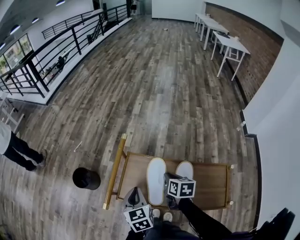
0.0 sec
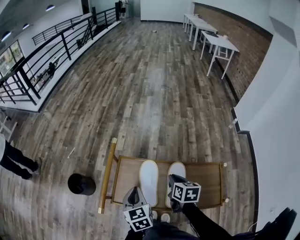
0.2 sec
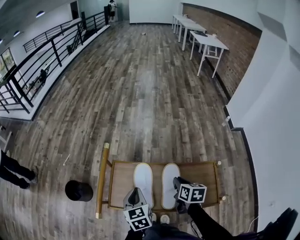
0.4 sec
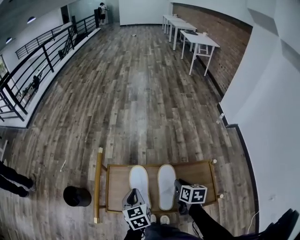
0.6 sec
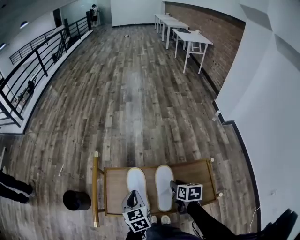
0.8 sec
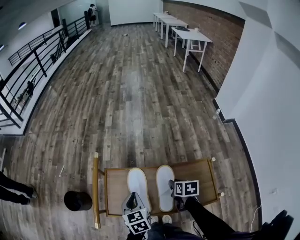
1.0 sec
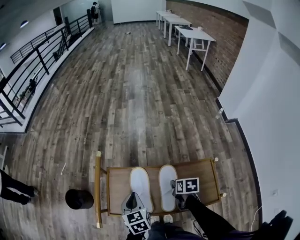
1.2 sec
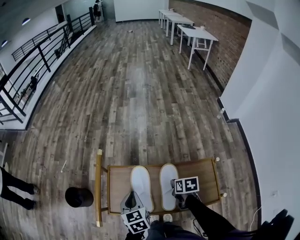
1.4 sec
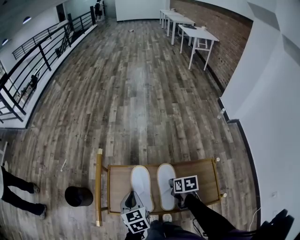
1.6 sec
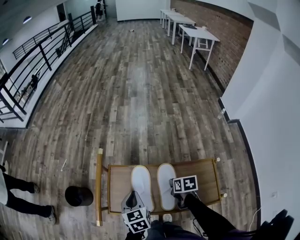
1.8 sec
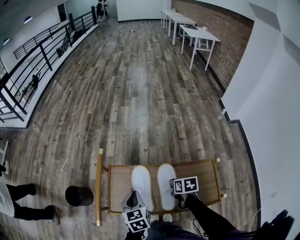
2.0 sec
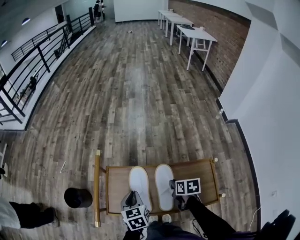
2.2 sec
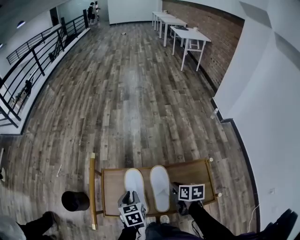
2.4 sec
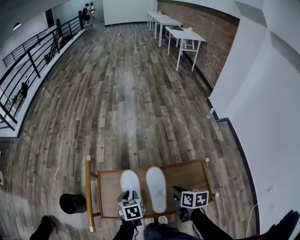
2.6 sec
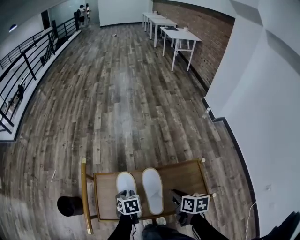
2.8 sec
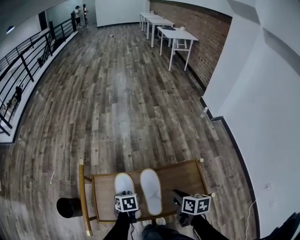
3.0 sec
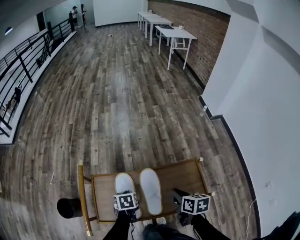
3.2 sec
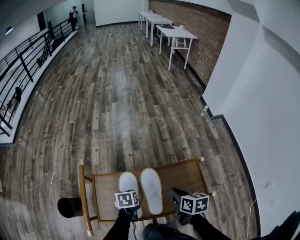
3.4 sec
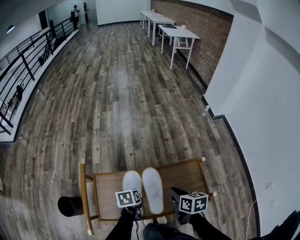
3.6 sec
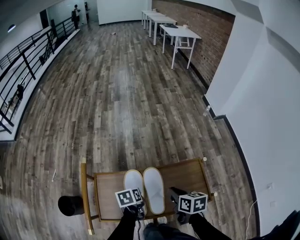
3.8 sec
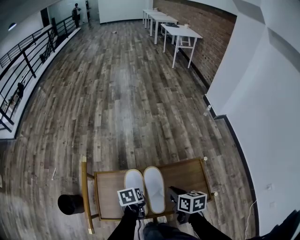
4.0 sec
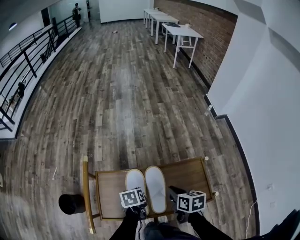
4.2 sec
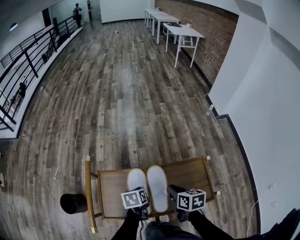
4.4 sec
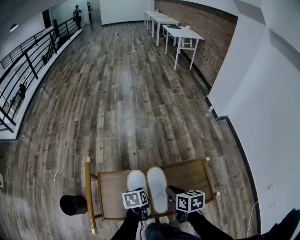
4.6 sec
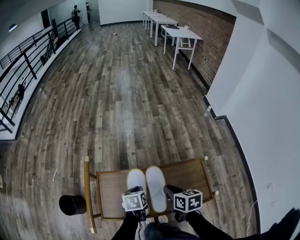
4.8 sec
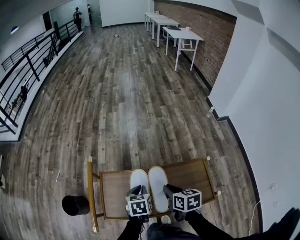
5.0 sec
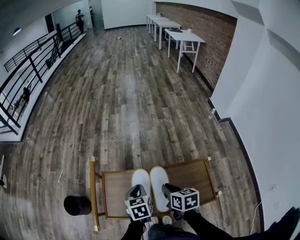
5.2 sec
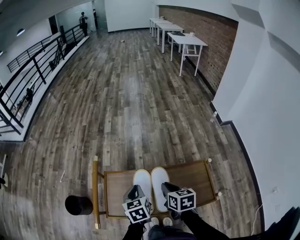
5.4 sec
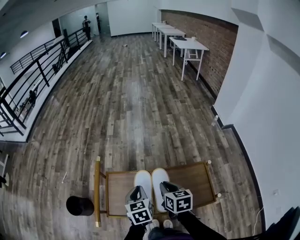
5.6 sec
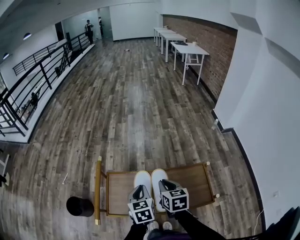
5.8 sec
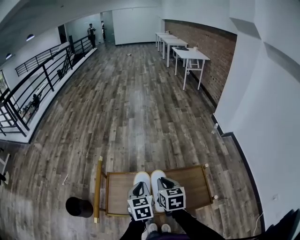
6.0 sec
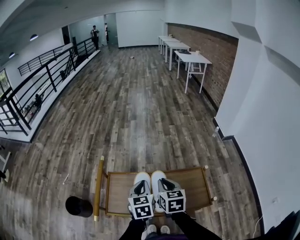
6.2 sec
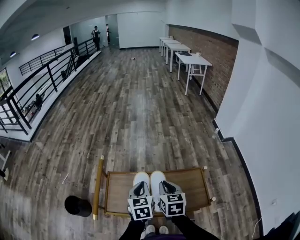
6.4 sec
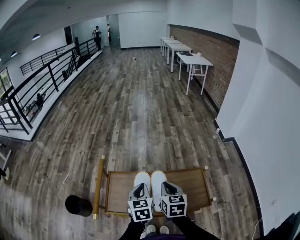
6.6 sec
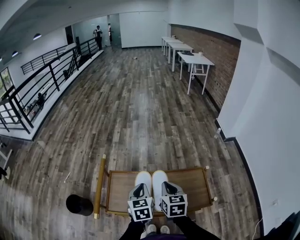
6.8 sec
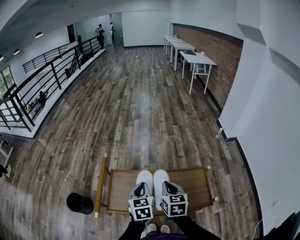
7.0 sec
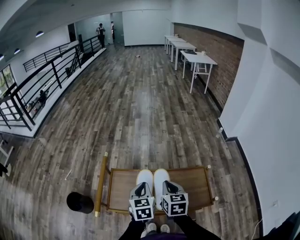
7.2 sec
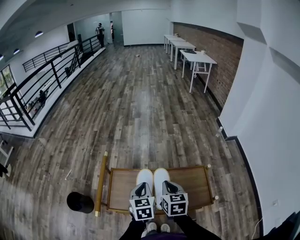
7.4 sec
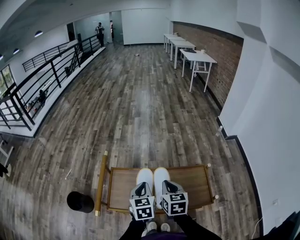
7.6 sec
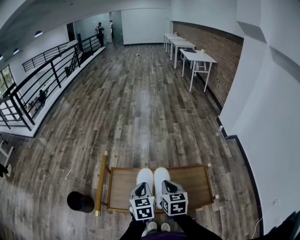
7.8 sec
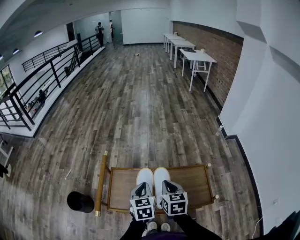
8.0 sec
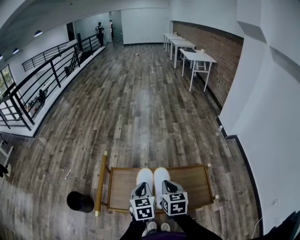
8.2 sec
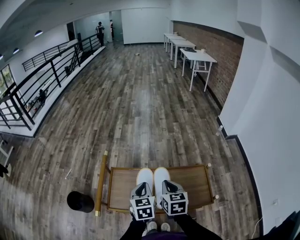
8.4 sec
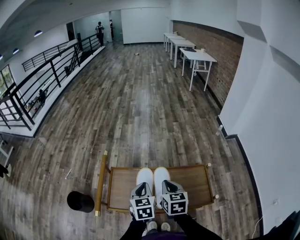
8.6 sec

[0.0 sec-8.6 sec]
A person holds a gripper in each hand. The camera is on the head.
0.0 sec to 1.4 sec: The left gripper moves to the right, some 5 cm; the right gripper travels to the right and downward by some 15 cm.
1.4 sec to 2.8 sec: The left gripper travels downward and to the right by roughly 10 cm, and changes its angle by some 30 degrees. Meanwhile the right gripper shifts approximately 10 cm upward and backward.
4.4 sec to 5.8 sec: The left gripper heads upward, covering approximately 15 cm, and turns by roughly 30 degrees. The right gripper heads upward, covering about 5 cm, and rotates some 20 degrees.
5.8 sec to 7.2 sec: The grippers make only small movements.
7.2 sec to 8.6 sec: Both grippers stay put.

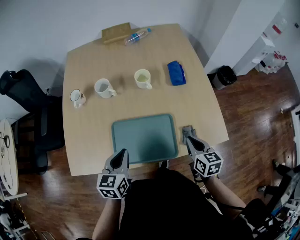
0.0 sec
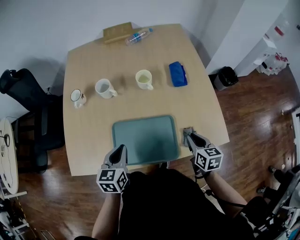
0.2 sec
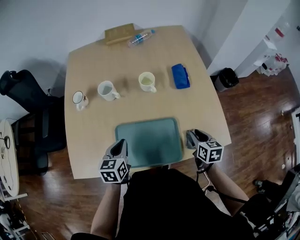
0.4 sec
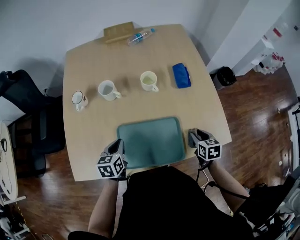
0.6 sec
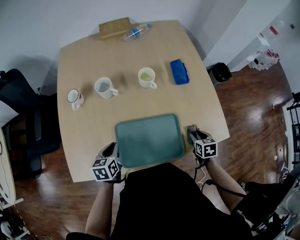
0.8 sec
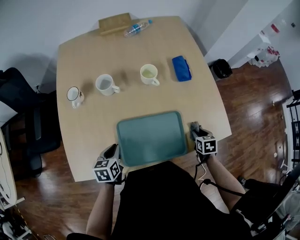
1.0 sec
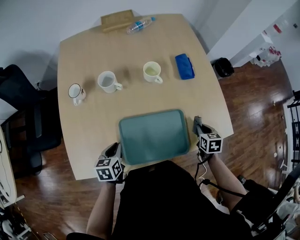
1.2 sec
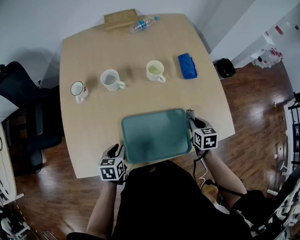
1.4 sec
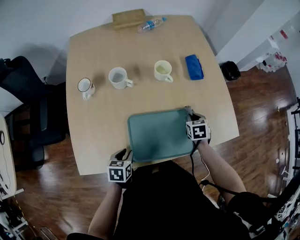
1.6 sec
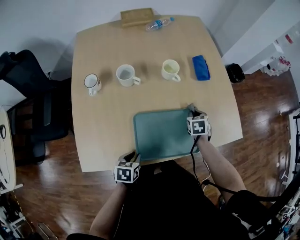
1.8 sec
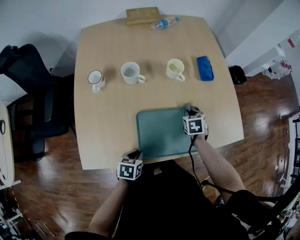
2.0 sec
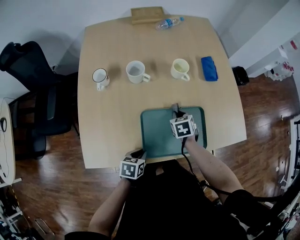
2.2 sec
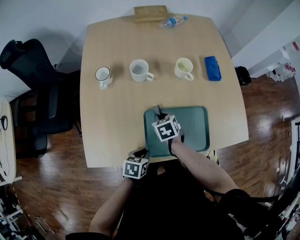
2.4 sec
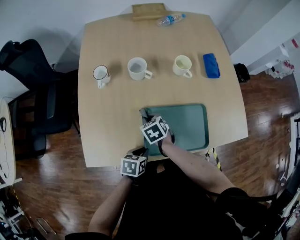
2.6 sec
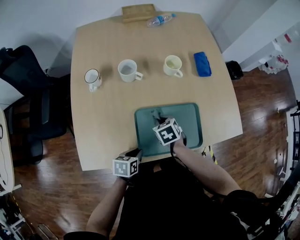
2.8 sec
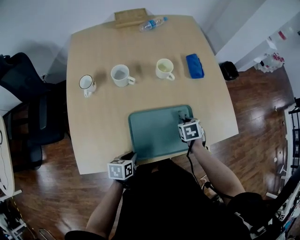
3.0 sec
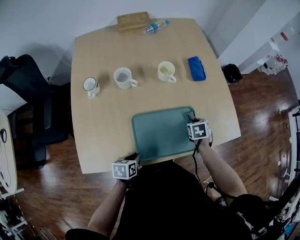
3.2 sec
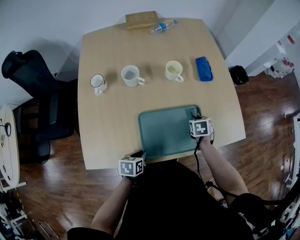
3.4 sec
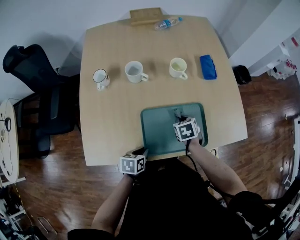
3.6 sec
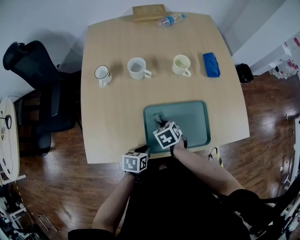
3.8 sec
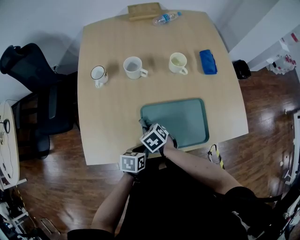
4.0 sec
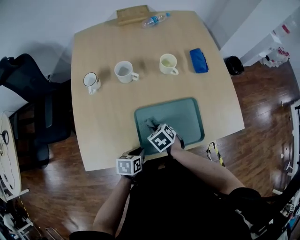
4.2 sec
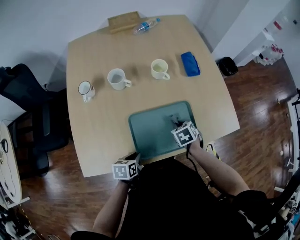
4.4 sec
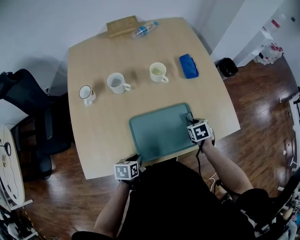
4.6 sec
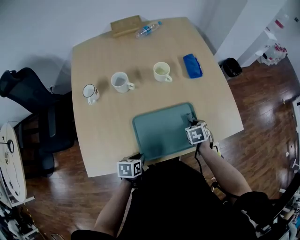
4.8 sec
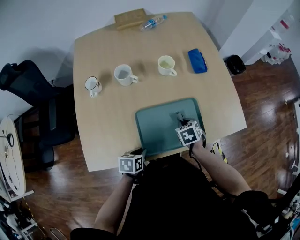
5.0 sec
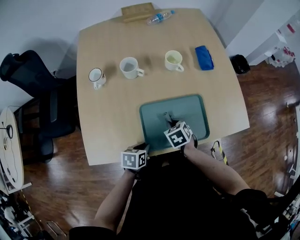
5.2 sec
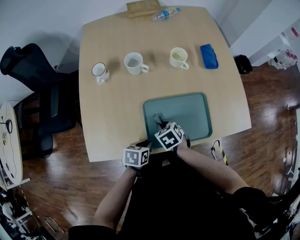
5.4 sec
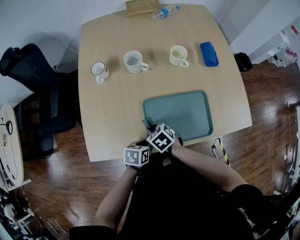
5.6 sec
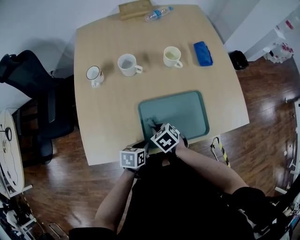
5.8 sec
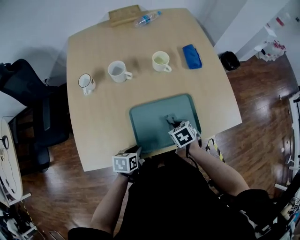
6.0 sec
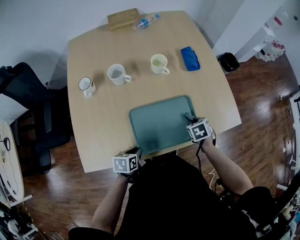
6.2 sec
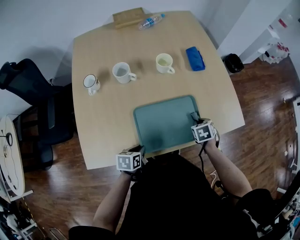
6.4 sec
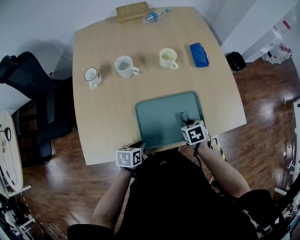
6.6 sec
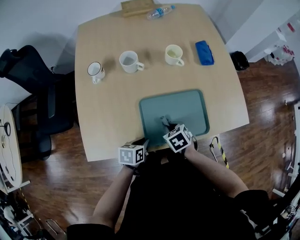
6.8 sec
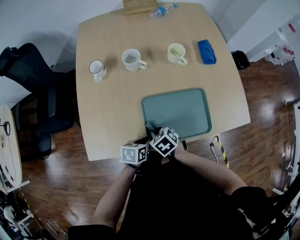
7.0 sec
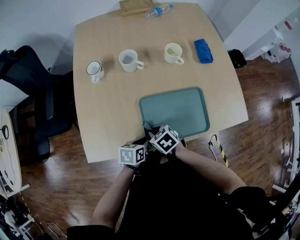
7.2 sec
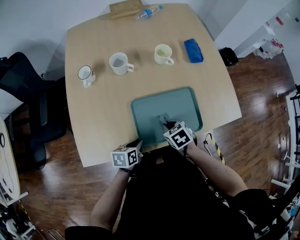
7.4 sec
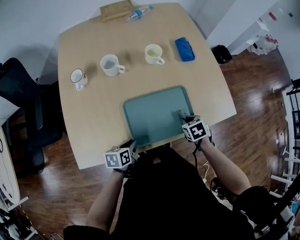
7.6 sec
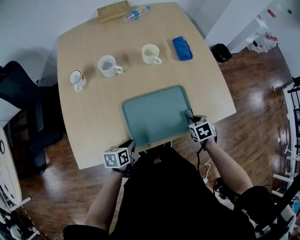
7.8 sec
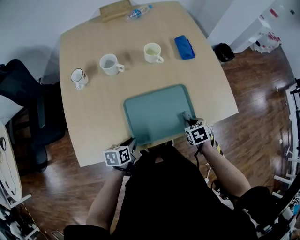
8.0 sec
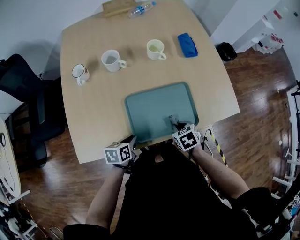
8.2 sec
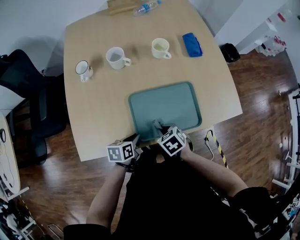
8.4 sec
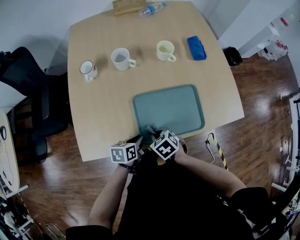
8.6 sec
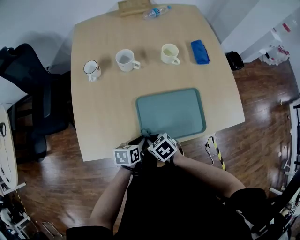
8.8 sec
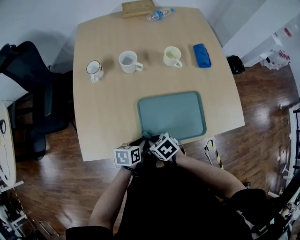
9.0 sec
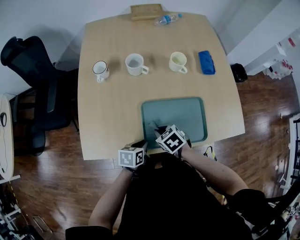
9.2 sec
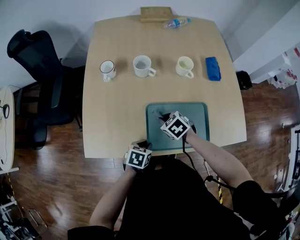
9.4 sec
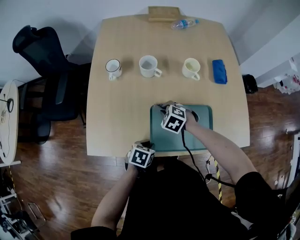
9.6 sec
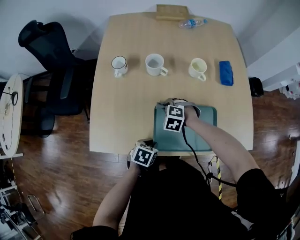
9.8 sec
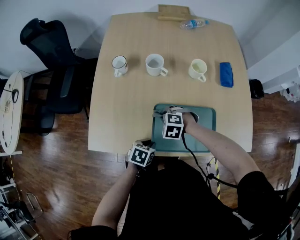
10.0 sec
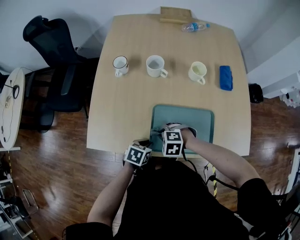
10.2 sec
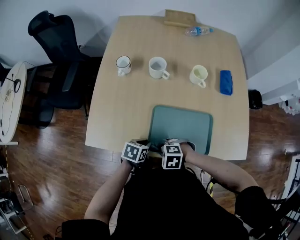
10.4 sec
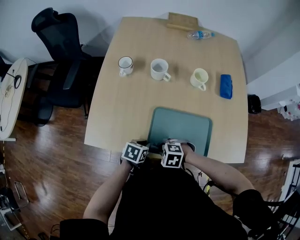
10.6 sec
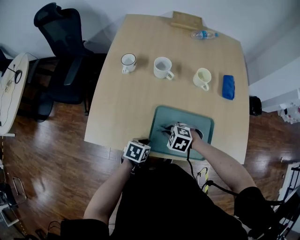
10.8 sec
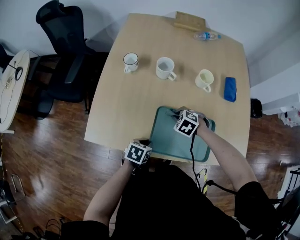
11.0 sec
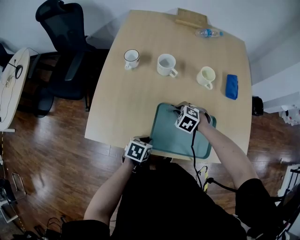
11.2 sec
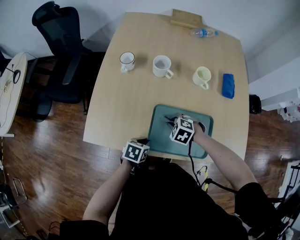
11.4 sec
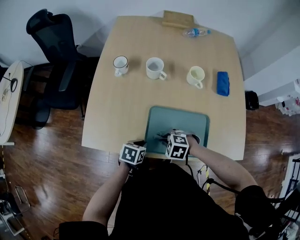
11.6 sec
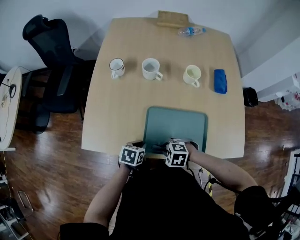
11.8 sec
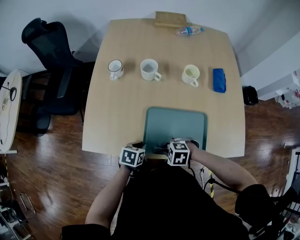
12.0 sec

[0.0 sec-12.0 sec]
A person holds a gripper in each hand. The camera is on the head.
0.0 sec to 1.6 sec: The right gripper goes up and down, roughly 15 cm each way, reversing 2 times, changes its angle by roughly 30 degrees, and opens and closes again, while the left gripper shifts approximately 15 cm downward and to the left, swivels roughly 30 degrees, and opens.
1.6 sec to 3.0 sec: The right gripper goes to the left and returns, about 30 cm each way.
7.6 sec to 9.0 sec: The right gripper changes place by some 25 cm, and rotates some 30 degrees.
9.0 sec to 10.4 sec: The right gripper rotates around the line of its fingers by approximately 60 degrees, counterclockwise from behind.

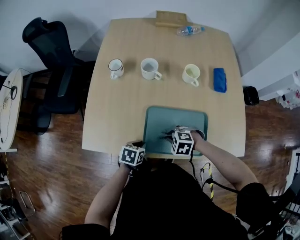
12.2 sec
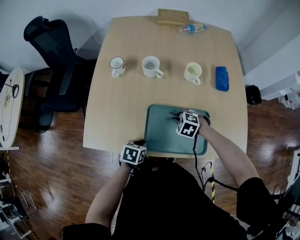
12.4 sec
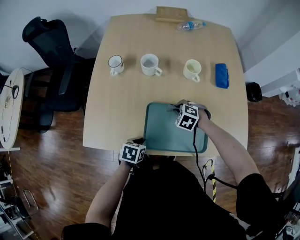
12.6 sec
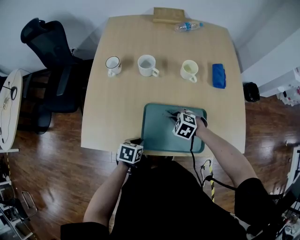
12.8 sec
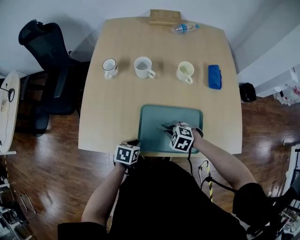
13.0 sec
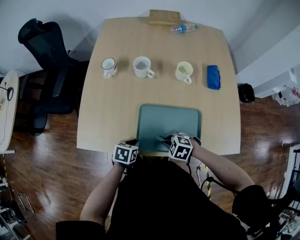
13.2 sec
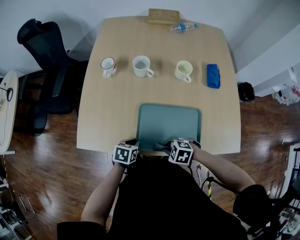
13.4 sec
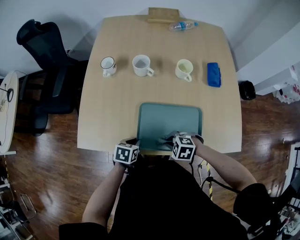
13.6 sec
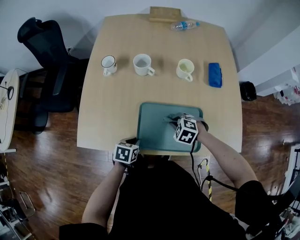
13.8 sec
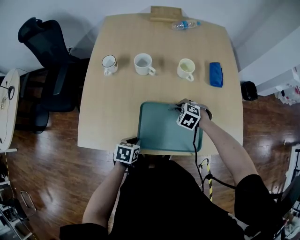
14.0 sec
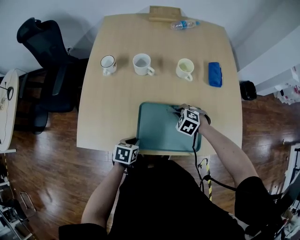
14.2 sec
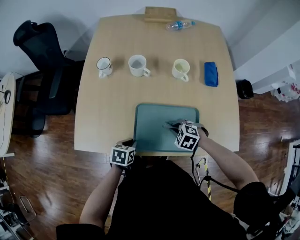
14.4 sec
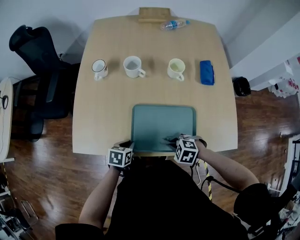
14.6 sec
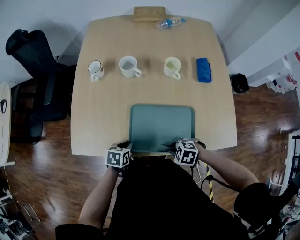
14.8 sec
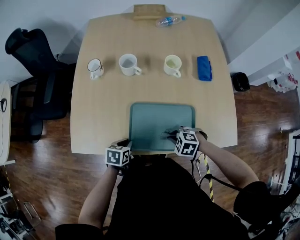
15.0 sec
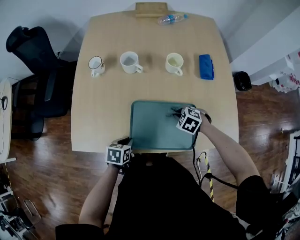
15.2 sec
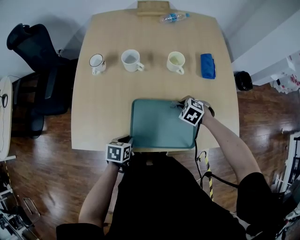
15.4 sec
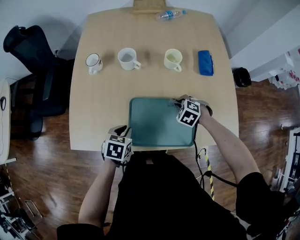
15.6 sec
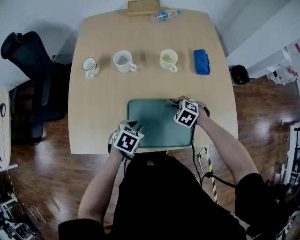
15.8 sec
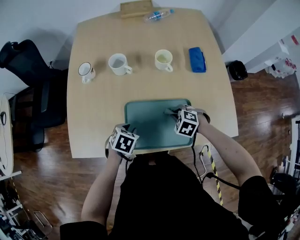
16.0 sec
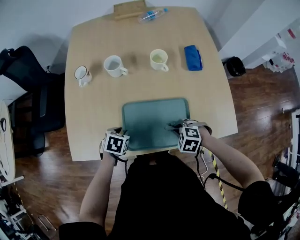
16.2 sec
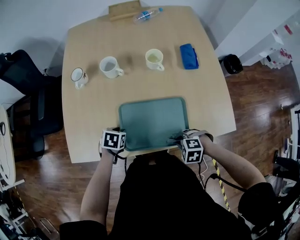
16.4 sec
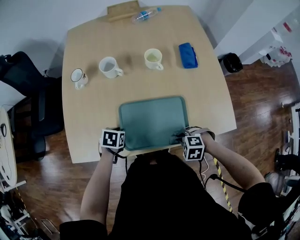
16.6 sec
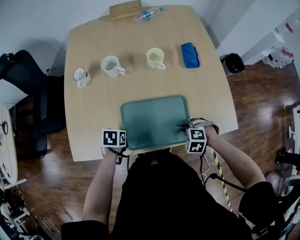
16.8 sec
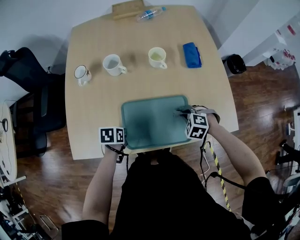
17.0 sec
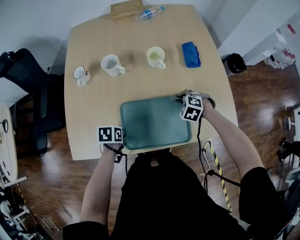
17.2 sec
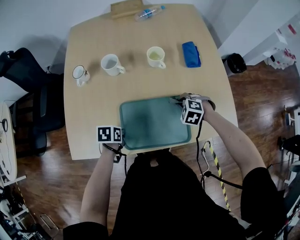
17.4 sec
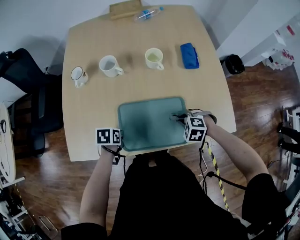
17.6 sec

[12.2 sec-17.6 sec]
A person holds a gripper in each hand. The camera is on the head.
15.0 sec to 16.2 sec: The left gripper heads forward, covering about 5 cm, and turns by some 20 degrees, while the right gripper moves some 15 cm forward and comes back.
16.2 sec to 17.6 sec: The left gripper changes its angle by some 30 degrees, and closes up.
